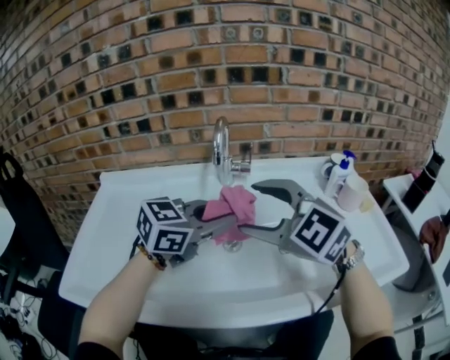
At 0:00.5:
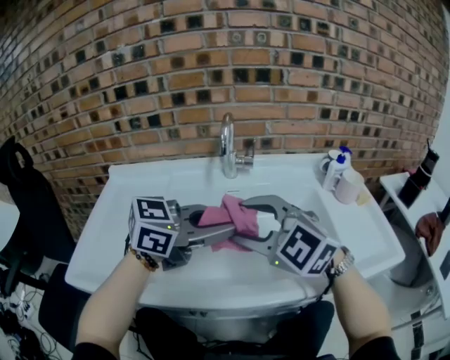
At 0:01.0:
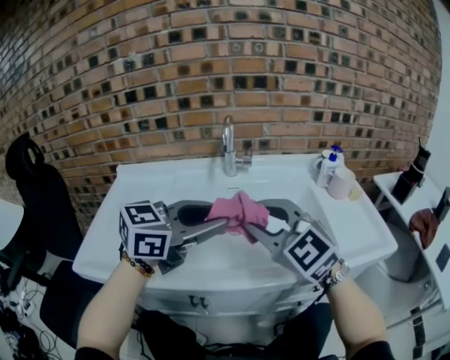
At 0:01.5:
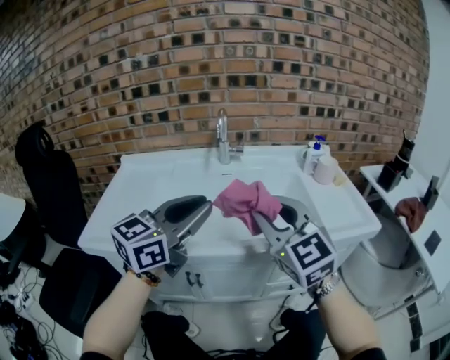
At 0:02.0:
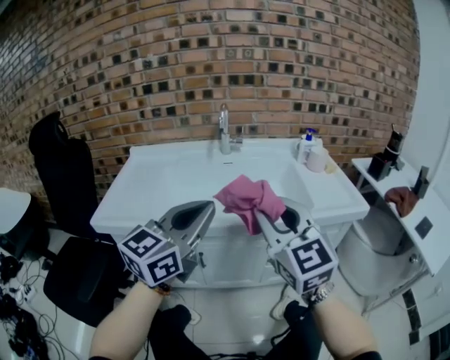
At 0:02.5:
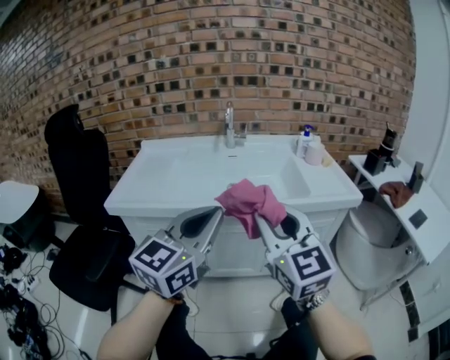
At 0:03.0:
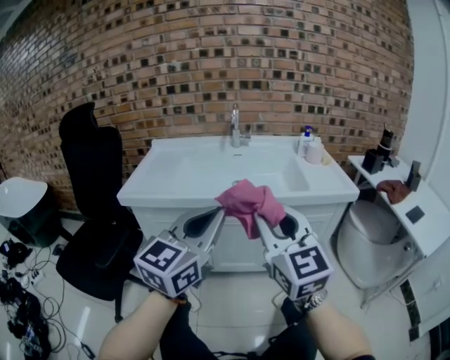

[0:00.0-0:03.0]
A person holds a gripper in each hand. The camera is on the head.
0:00.0 to 0:01.5: The right gripper shifts by about 20 cm, rotates approximately 30 degrees, and closes up. Meanwhile the left gripper shifts by approximately 20 cm, and turns by approximately 30 degrees.
0:01.5 to 0:03.0: Both grippers move backward, about 25 cm. The left gripper closes up.

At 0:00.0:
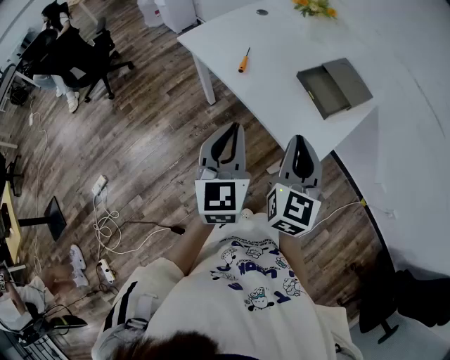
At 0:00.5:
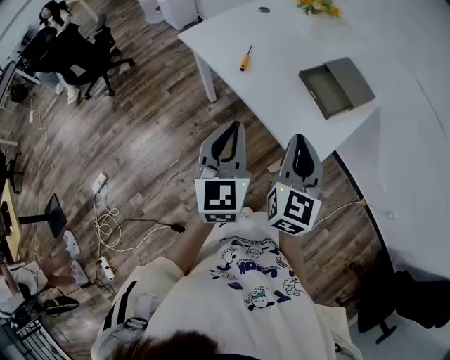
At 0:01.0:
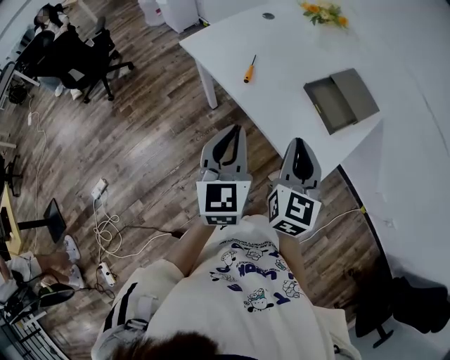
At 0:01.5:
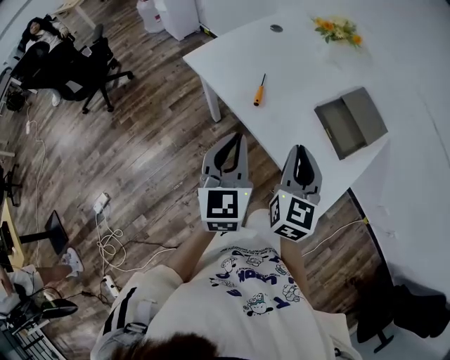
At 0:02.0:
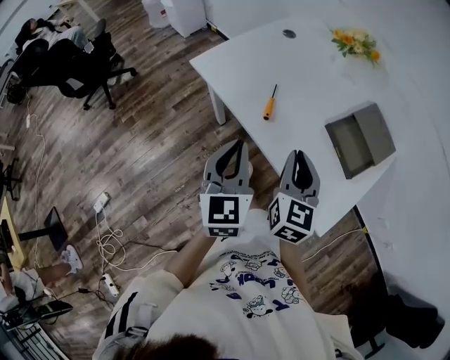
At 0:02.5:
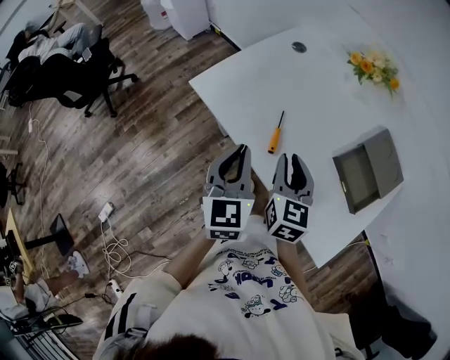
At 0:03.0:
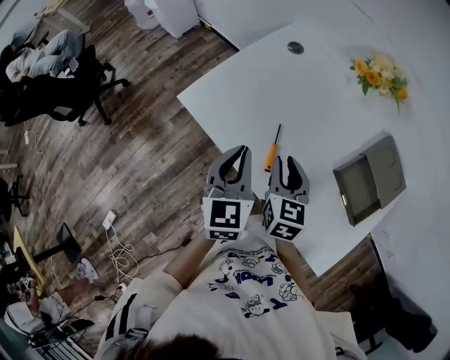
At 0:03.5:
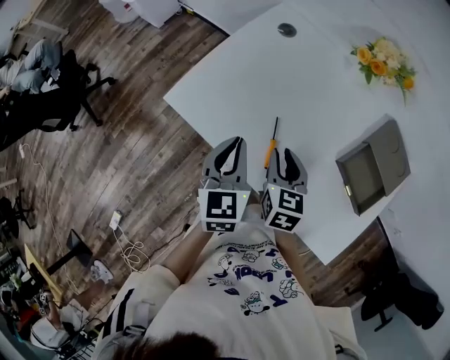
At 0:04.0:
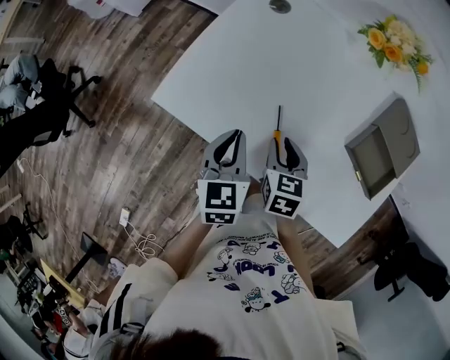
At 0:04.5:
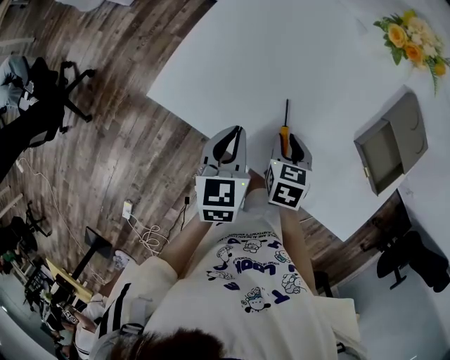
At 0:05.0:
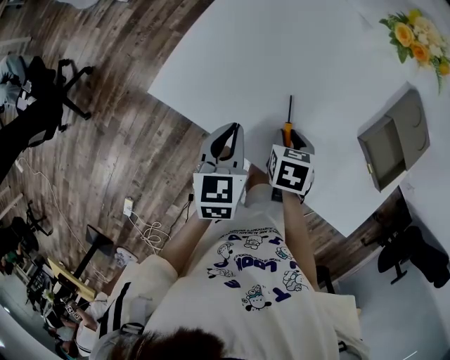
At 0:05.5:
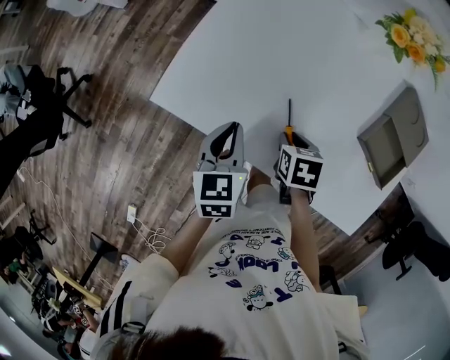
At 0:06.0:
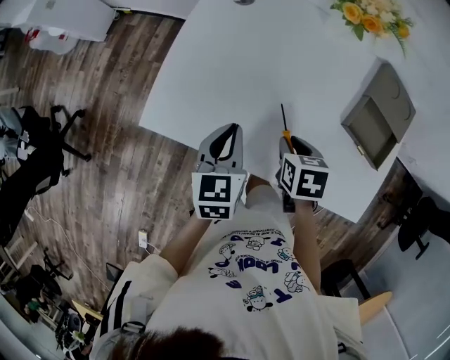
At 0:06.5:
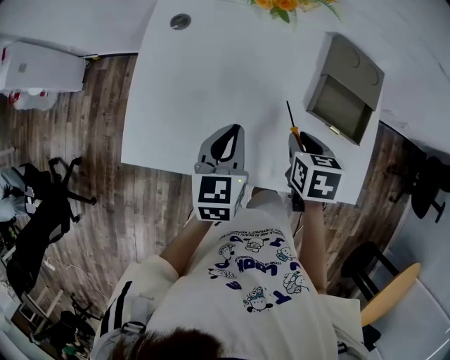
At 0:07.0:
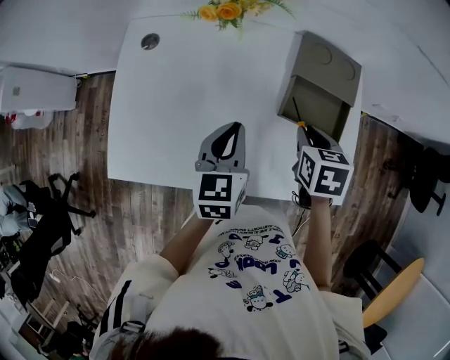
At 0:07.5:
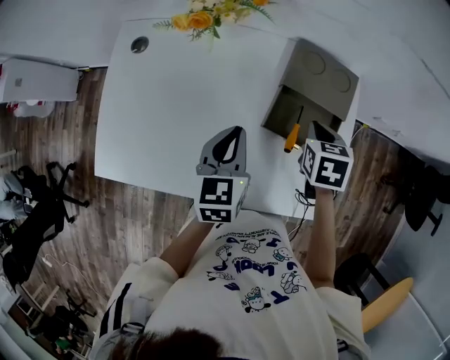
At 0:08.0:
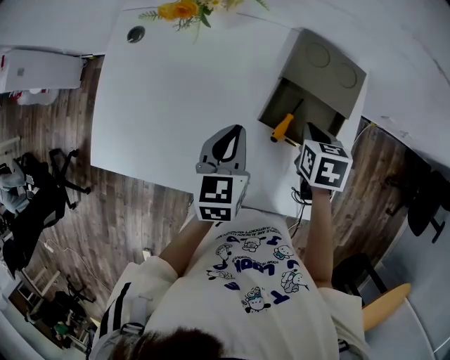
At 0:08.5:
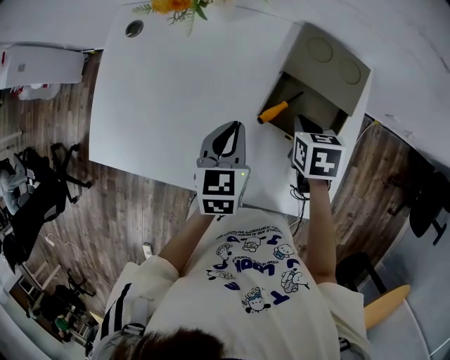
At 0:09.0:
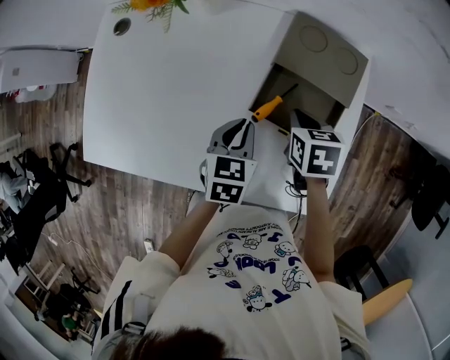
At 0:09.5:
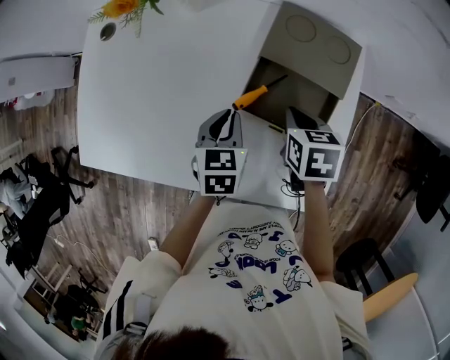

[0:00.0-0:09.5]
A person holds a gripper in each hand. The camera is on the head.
0:00.0 to 0:02.0: Both grippers move forward and to the left, roughly 20 cm.
0:02.0 to 0:04.0: The grippers both shift forward and downward by roughly 30 cm. The right gripper angles its fingers downward, by about 30 degrees, and opens up, while the left gripper changes its angle by approximately 30 degrees.
0:04.0 to 0:05.5: The right gripper shifts approximately 5 cm downward, and rotates about 30 degrees, while the left gripper ends up some 5 cm from where it was.
0:05.5 to 0:07.5: The left gripper moves about 30 cm, and rotates some 20 degrees. The right gripper changes place by some 35 cm, and swivels roughly 30 degrees.
0:07.5 to 0:09.5: The left gripper travels downward and to the right by approximately 10 cm; the right gripper travels downward by some 5 cm.

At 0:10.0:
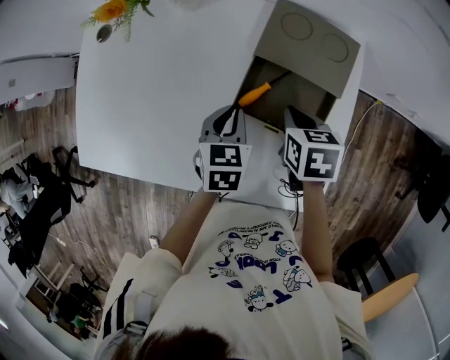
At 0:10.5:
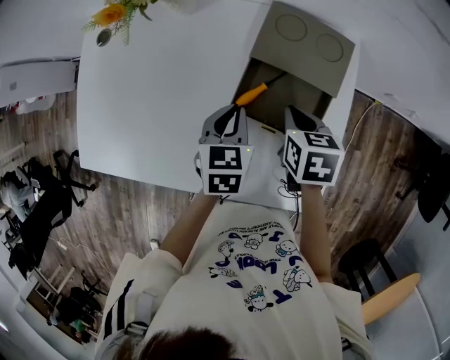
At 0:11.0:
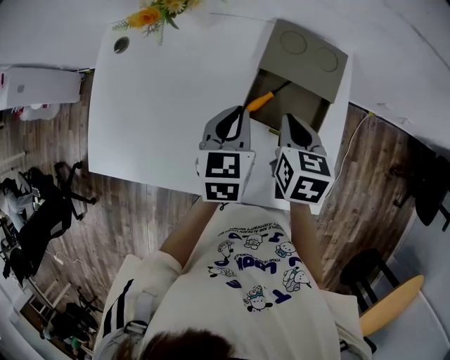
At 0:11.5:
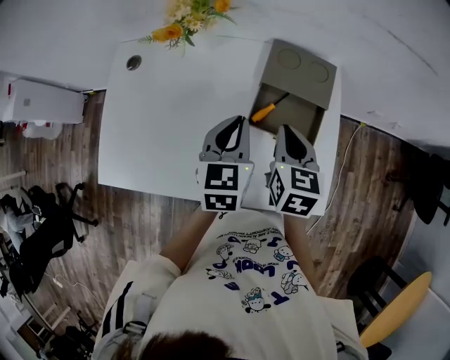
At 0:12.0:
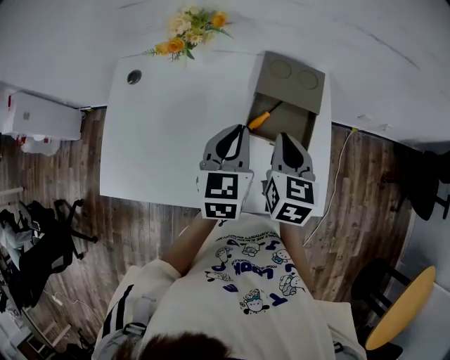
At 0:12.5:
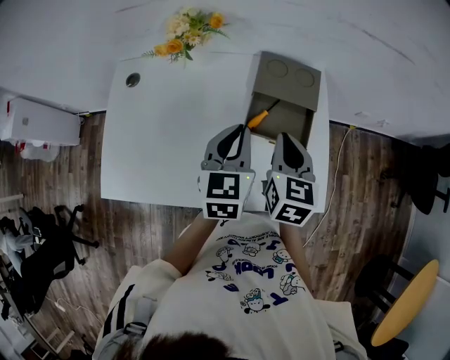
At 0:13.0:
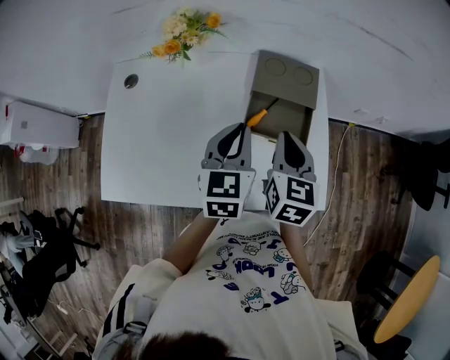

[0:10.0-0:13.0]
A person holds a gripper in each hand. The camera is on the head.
0:10.0 to 0:11.5: Both grippers travel together upward, roughly 15 cm. The left gripper swivels some 20 degrees. The right gripper rotates approximately 30 degrees.
0:11.5 to 0:13.0: The right gripper ends up approximately 5 cm from where it was.

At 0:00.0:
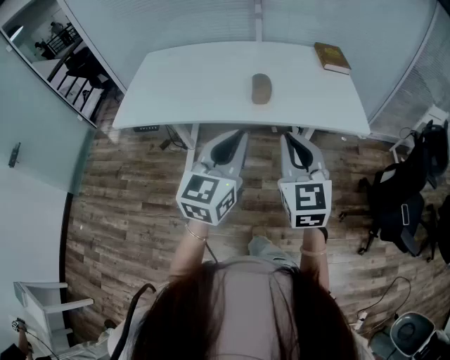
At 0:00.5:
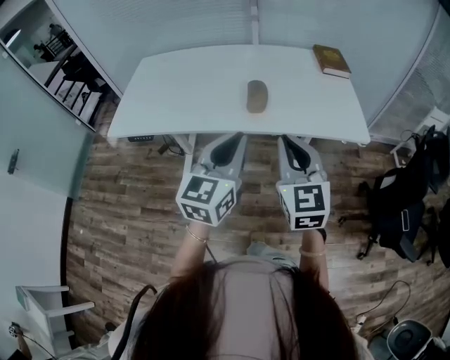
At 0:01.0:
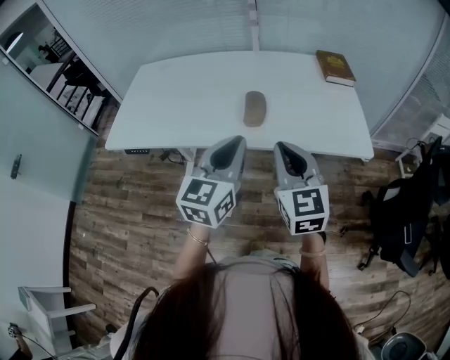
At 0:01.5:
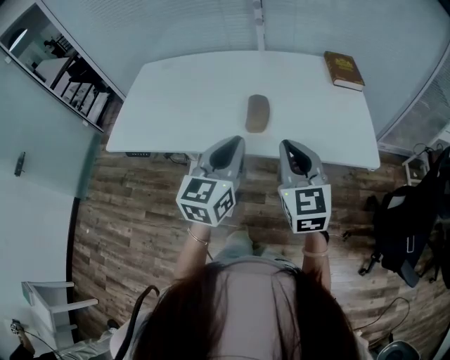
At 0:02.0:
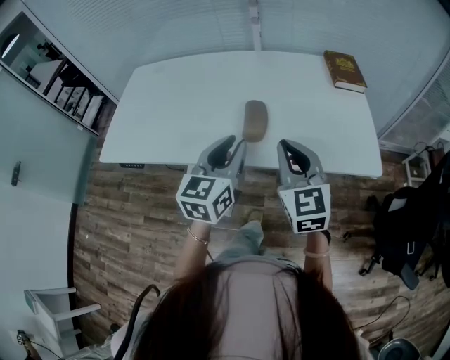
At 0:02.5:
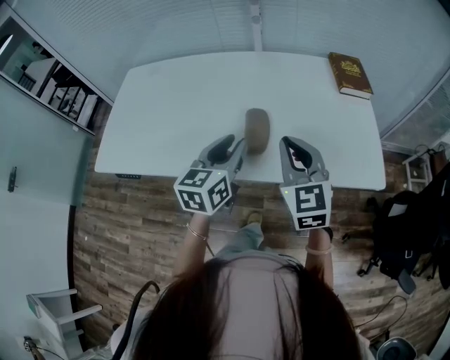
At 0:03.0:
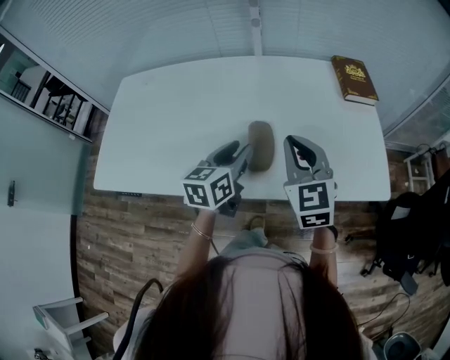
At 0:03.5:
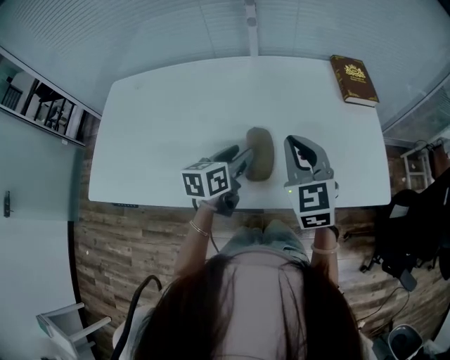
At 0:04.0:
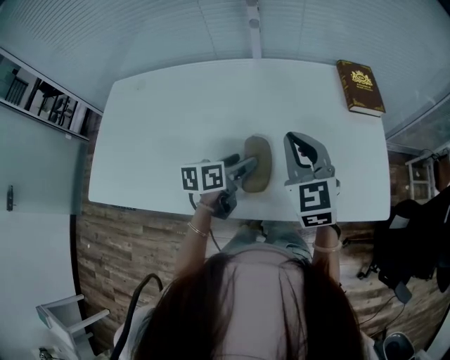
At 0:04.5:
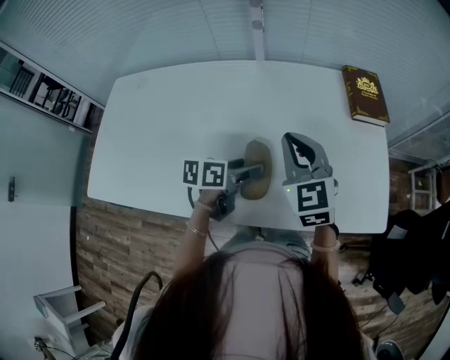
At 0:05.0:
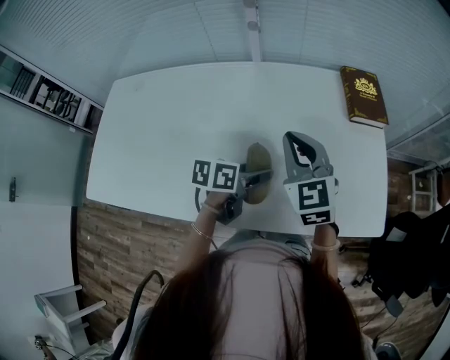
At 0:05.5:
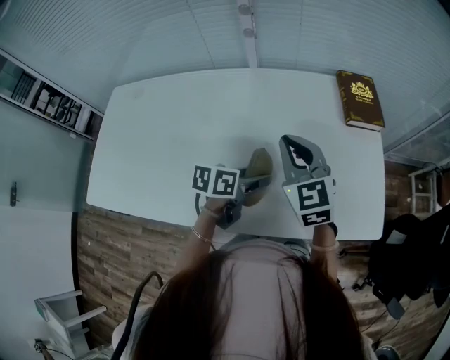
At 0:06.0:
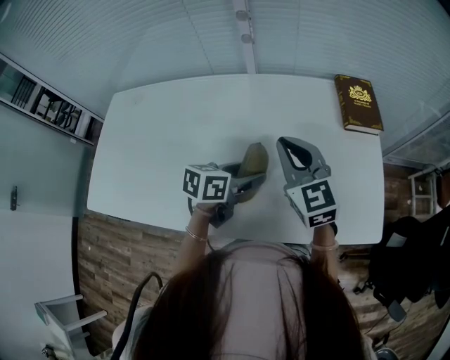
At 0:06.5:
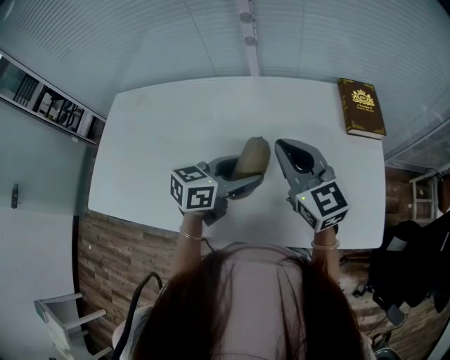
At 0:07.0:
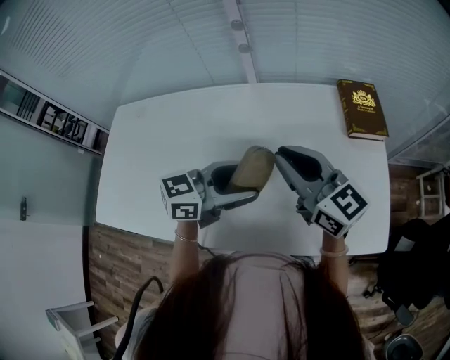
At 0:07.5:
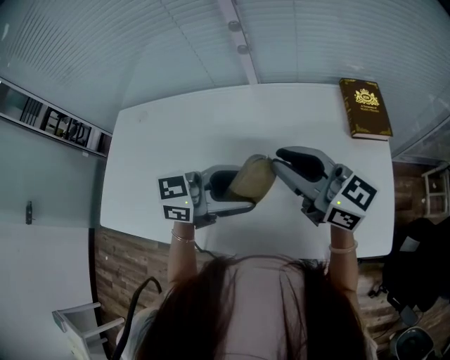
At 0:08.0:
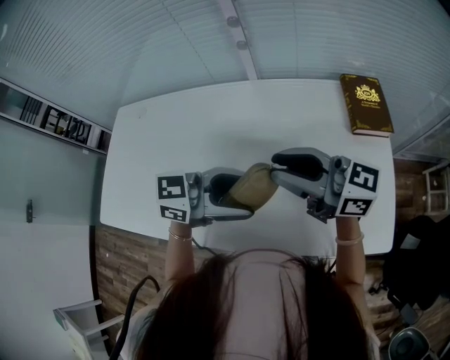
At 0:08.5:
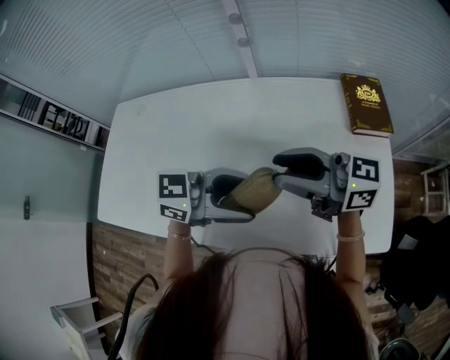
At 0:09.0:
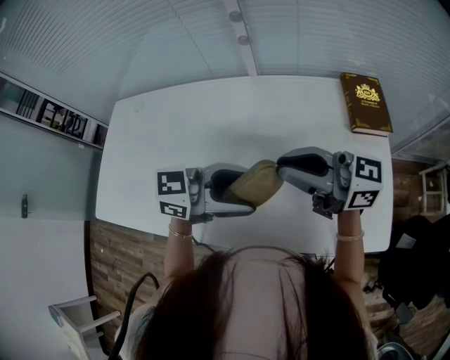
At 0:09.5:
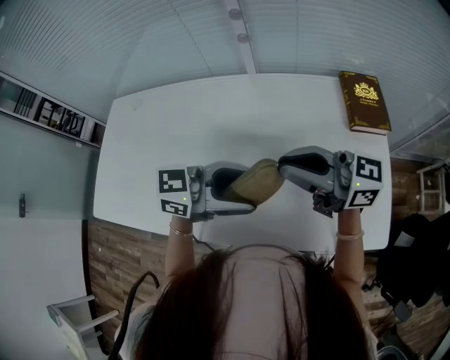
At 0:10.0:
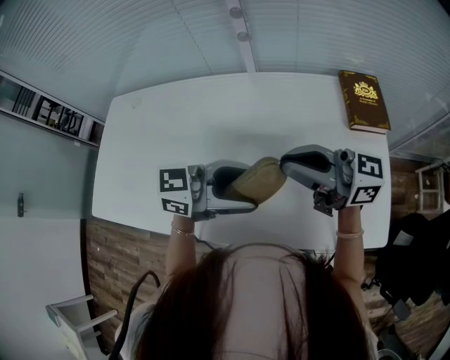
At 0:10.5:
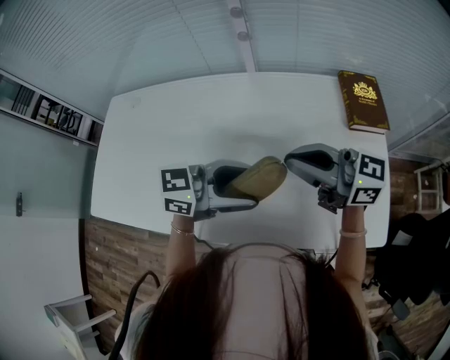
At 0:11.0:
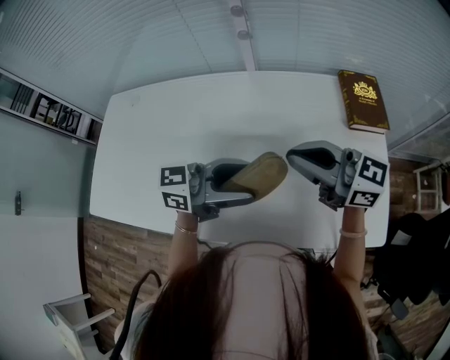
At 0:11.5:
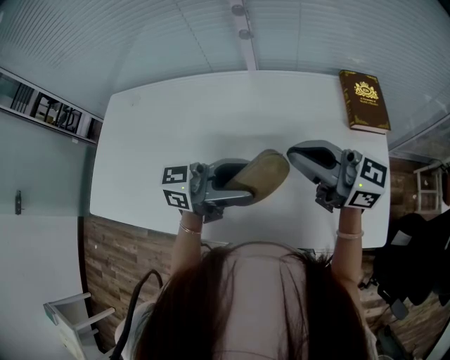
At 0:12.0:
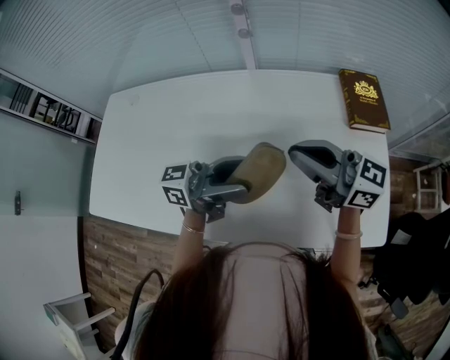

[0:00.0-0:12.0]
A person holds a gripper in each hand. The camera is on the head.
0:00.0 to 0:02.0: Both grippers move forward, roughly 20 cm.
0:02.0 to 0:04.0: The left gripper heads forward and downward, covering roughly 25 cm, changes its angle by about 50 degrees, and opens up; the right gripper goes some 20 cm forward.
0:04.0 to 0:06.0: The right gripper is displaced forward by about 5 cm. The left gripper moves to the right, about 5 cm.
0:06.0 to 0:08.0: The right gripper shifts some 5 cm upward, turns by some 60 degrees, and opens its fingers. The left gripper is displaced upward by some 10 cm, and rotates about 40 degrees.
0:08.0 to 0:10.0: The right gripper closes its fingers.
0:10.0 to 0:12.0: The left gripper turns by some 30 degrees.
